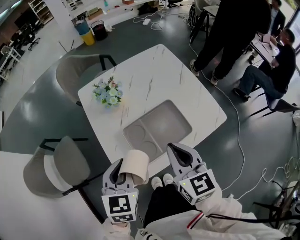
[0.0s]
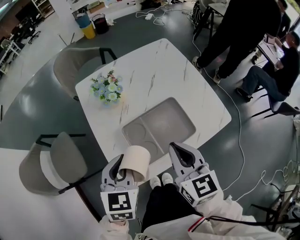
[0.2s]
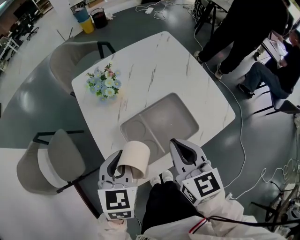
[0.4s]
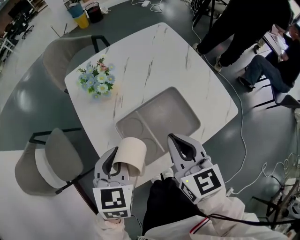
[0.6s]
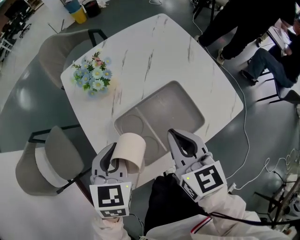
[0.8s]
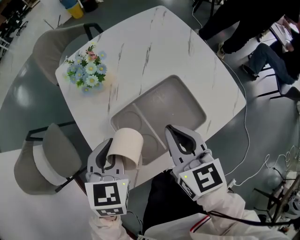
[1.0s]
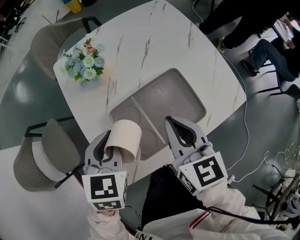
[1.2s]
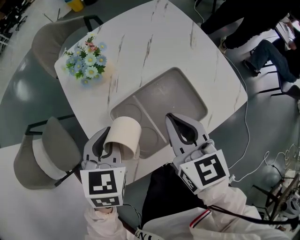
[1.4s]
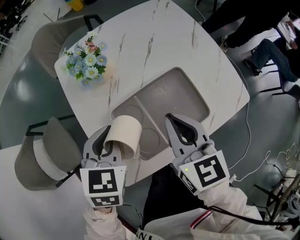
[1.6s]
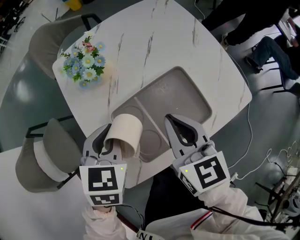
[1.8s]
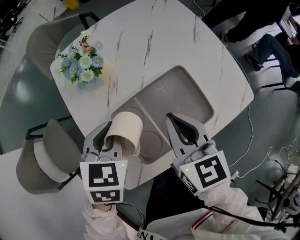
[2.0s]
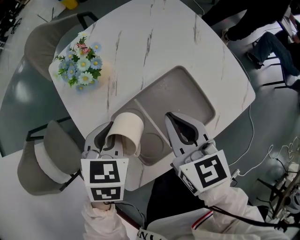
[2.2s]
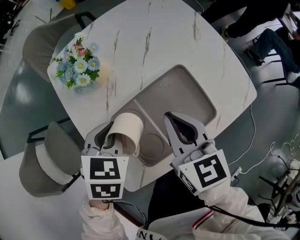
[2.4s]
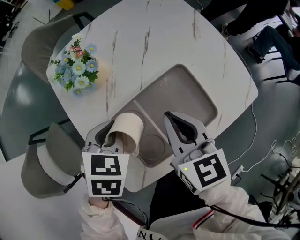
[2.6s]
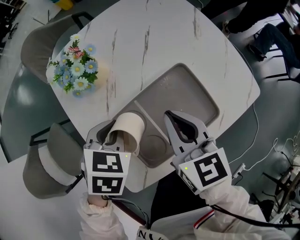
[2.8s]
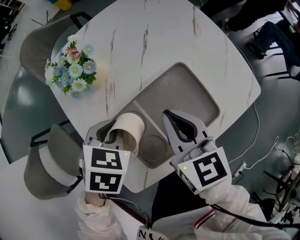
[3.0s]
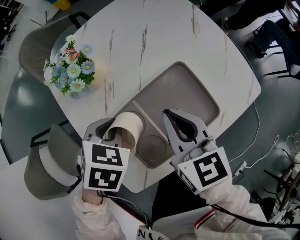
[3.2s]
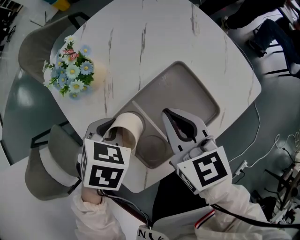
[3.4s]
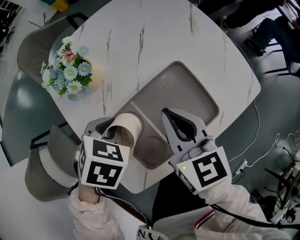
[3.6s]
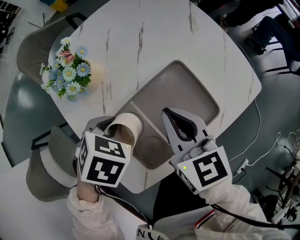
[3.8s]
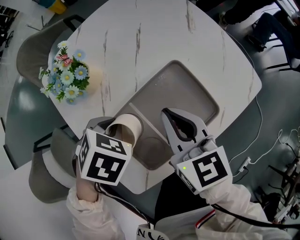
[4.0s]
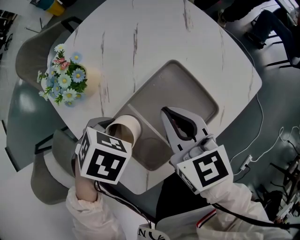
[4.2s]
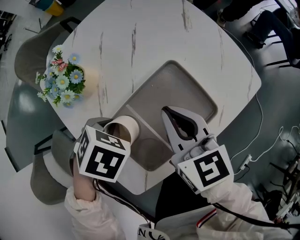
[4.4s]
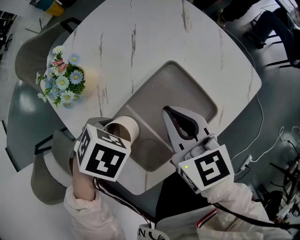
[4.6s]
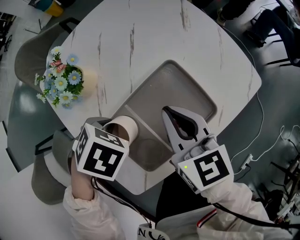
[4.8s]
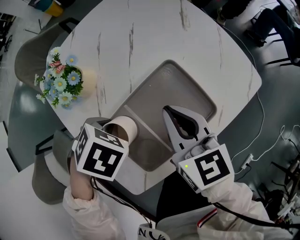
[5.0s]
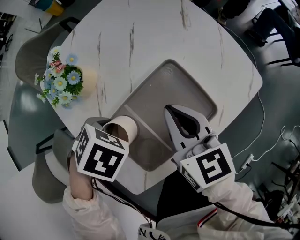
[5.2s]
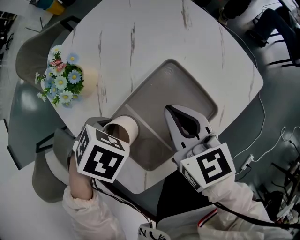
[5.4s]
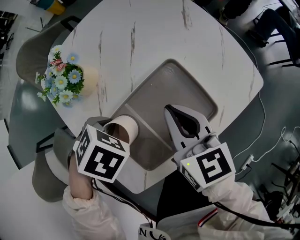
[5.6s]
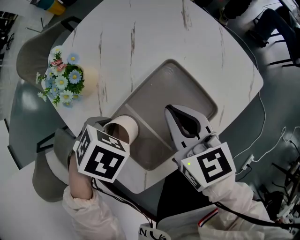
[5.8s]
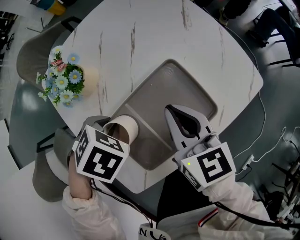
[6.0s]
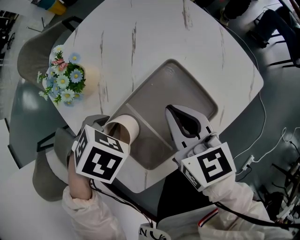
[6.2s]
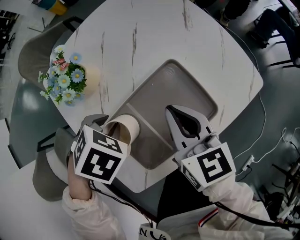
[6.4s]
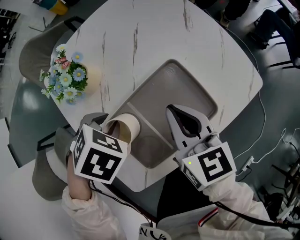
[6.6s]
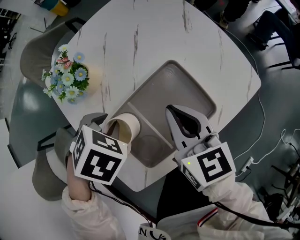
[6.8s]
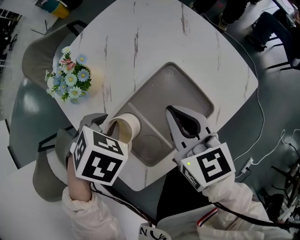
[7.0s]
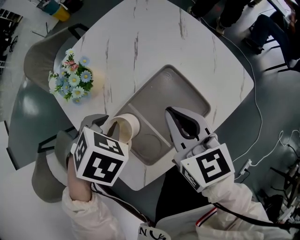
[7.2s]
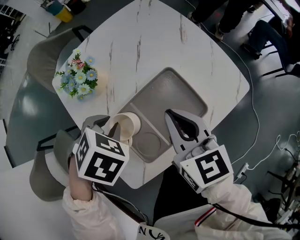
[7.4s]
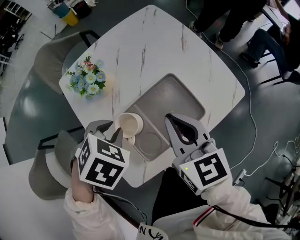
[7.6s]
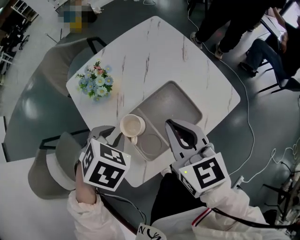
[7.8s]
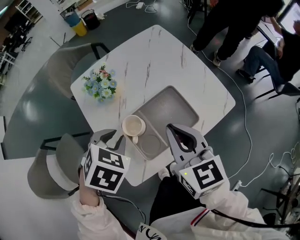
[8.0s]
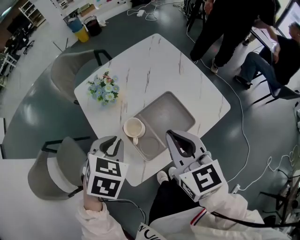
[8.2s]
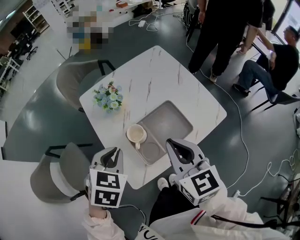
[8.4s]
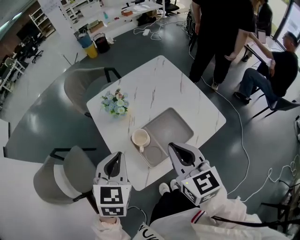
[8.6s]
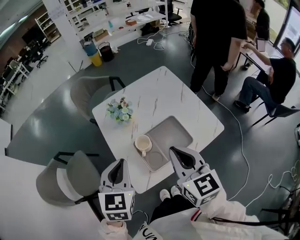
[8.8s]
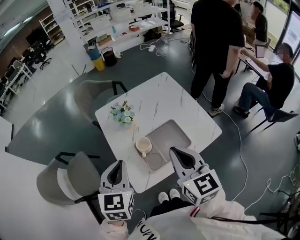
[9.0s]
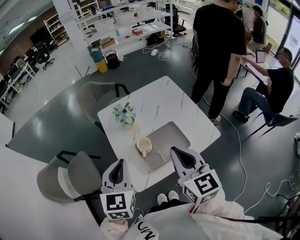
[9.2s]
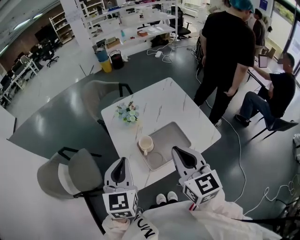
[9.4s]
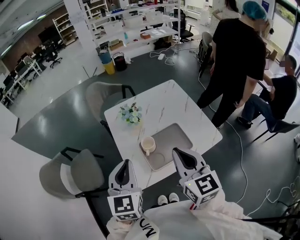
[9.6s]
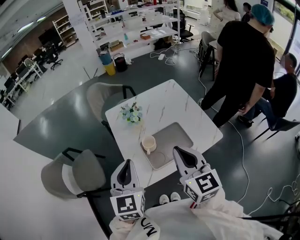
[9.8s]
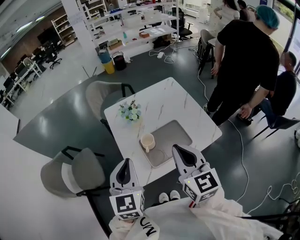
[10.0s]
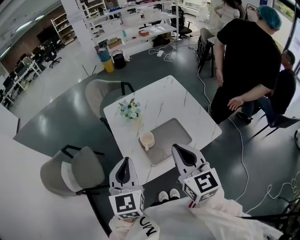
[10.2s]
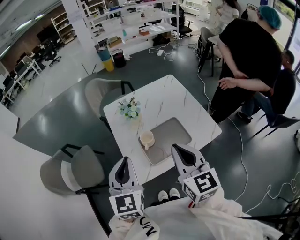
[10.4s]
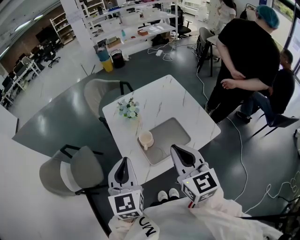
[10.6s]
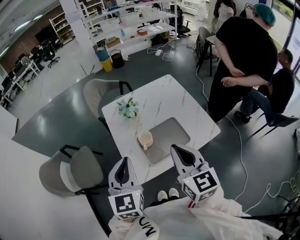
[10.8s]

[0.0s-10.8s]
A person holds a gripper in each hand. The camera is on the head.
0.0s to 1.6s: The two grippers go approximately 15 cm downward and forward.
1.6s to 3.0s: The right gripper ends up roughly 5 cm from where it was, while the left gripper is displaced downward by about 5 cm, and rotates some 20 degrees.
3.0s to 4.6s: The left gripper rotates some 20 degrees.
4.6s to 6.2s: Both grippers stay about where they are.
6.2s to 7.8s: The two grippers go about 10 cm upward.
7.8s to 9.2s: The grippers both shift upward and backward by approximately 20 cm. The left gripper angles its fingers upward, by about 50 degrees, and closes.
9.2s to 10.8s: The left gripper shifts by approximately 5 cm.

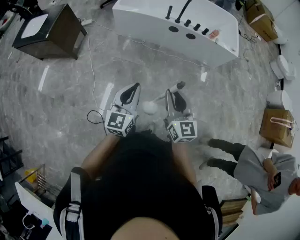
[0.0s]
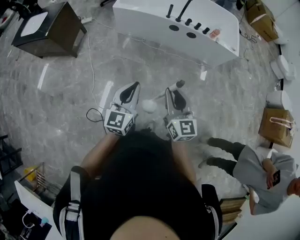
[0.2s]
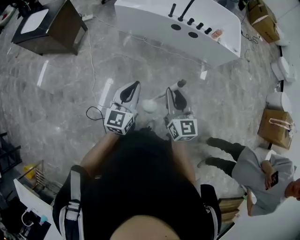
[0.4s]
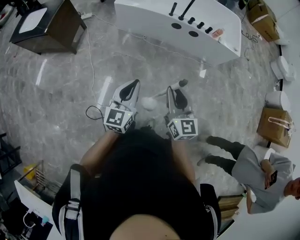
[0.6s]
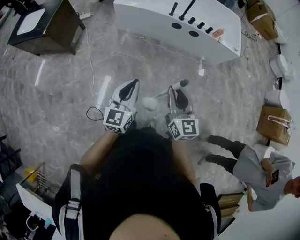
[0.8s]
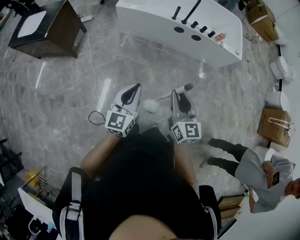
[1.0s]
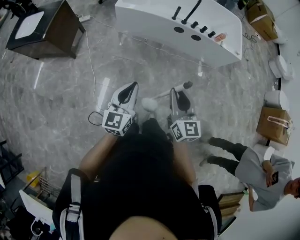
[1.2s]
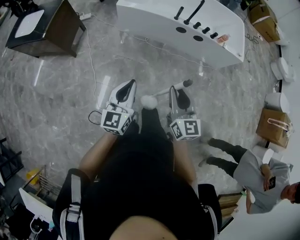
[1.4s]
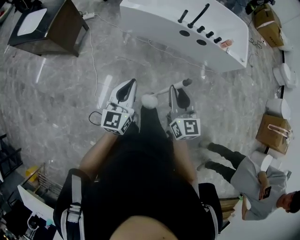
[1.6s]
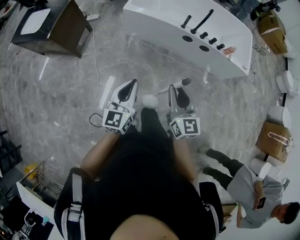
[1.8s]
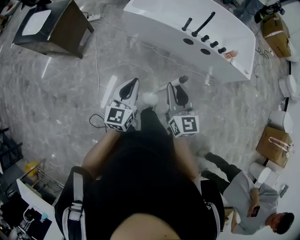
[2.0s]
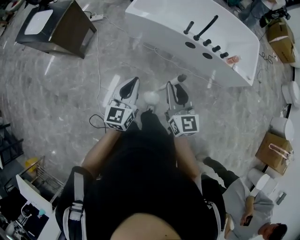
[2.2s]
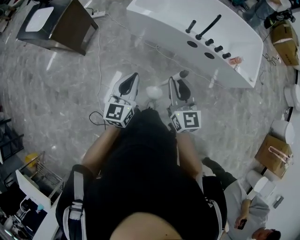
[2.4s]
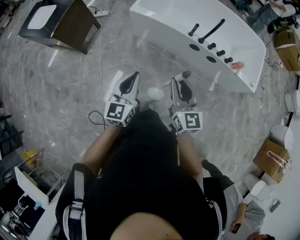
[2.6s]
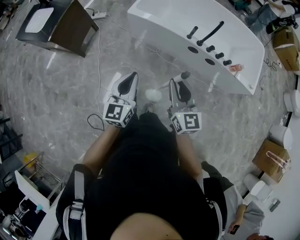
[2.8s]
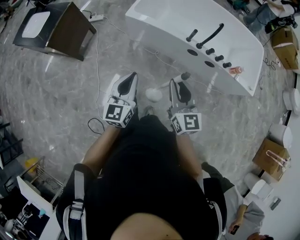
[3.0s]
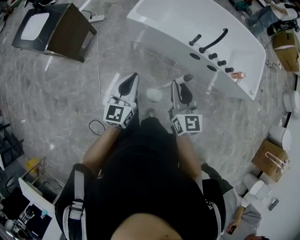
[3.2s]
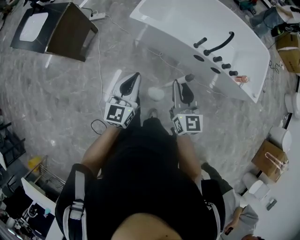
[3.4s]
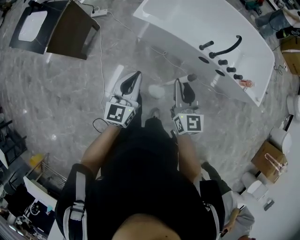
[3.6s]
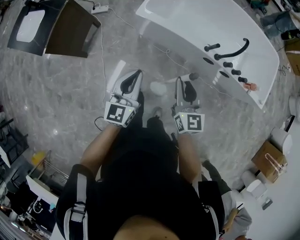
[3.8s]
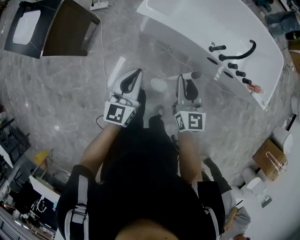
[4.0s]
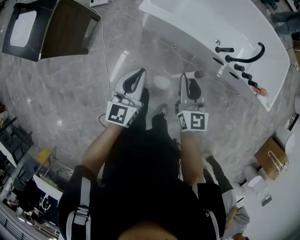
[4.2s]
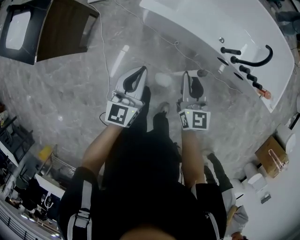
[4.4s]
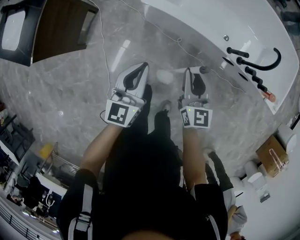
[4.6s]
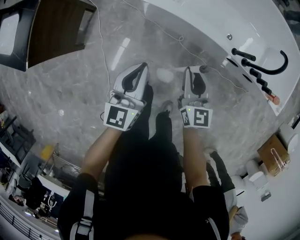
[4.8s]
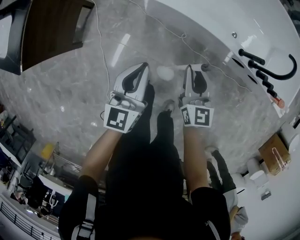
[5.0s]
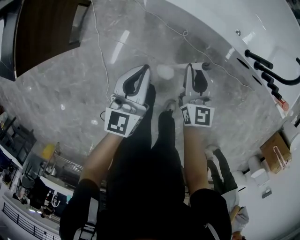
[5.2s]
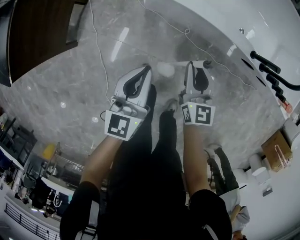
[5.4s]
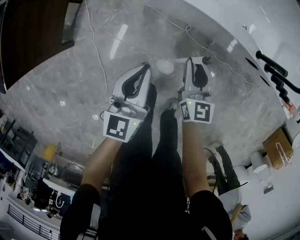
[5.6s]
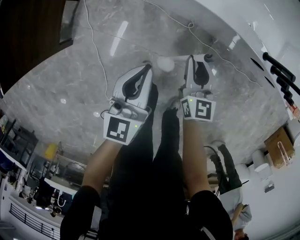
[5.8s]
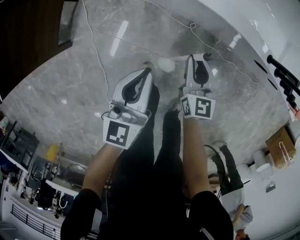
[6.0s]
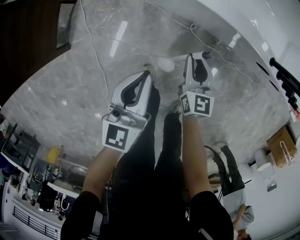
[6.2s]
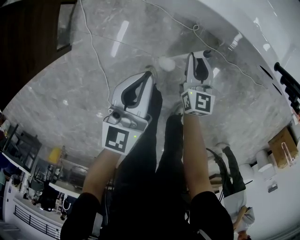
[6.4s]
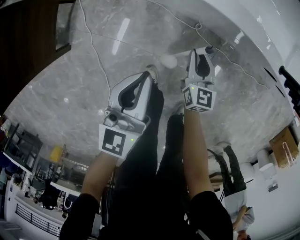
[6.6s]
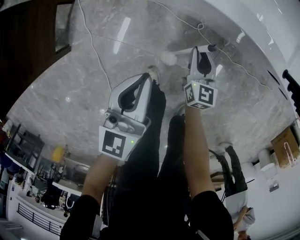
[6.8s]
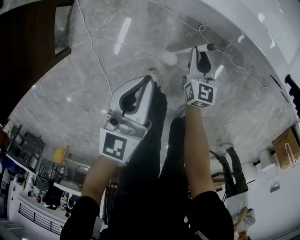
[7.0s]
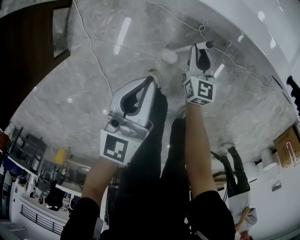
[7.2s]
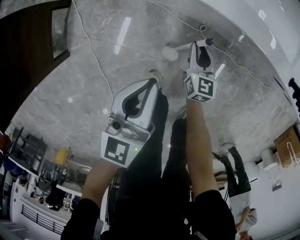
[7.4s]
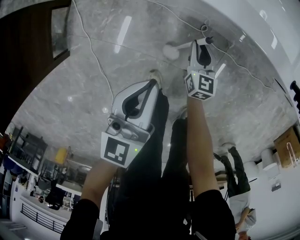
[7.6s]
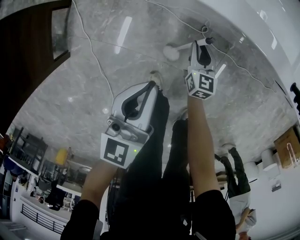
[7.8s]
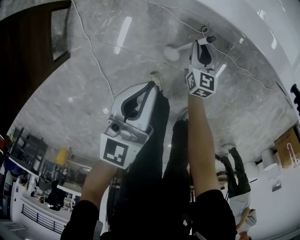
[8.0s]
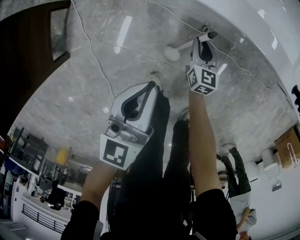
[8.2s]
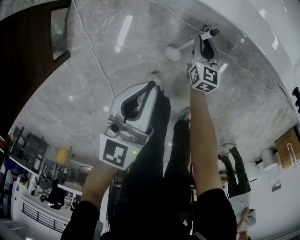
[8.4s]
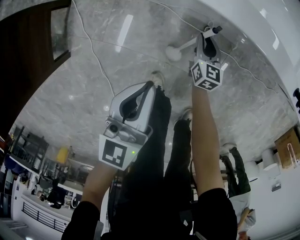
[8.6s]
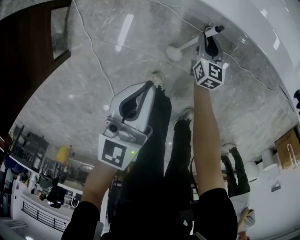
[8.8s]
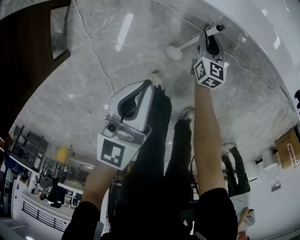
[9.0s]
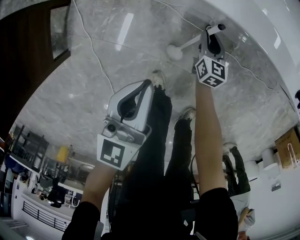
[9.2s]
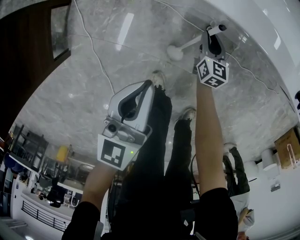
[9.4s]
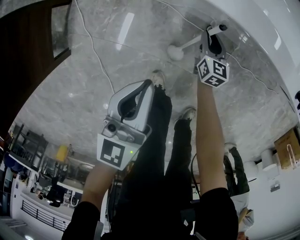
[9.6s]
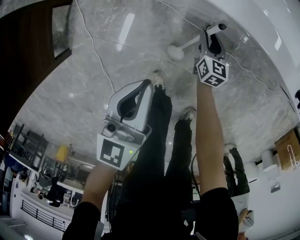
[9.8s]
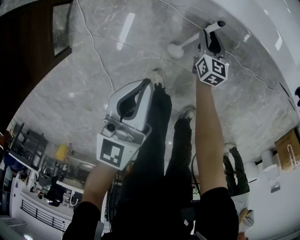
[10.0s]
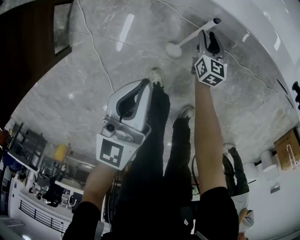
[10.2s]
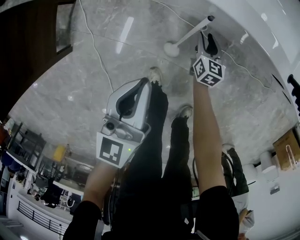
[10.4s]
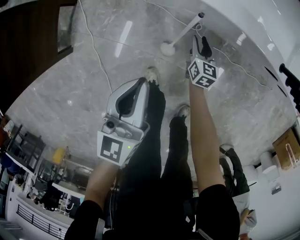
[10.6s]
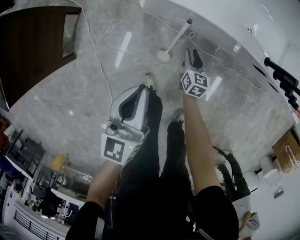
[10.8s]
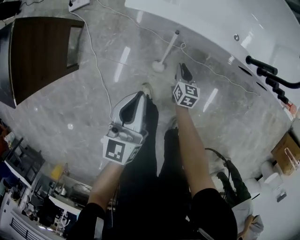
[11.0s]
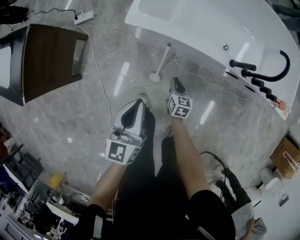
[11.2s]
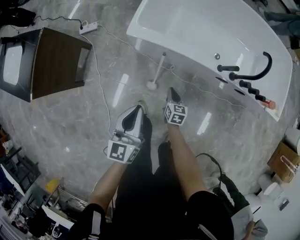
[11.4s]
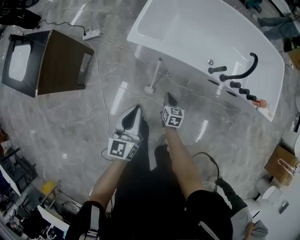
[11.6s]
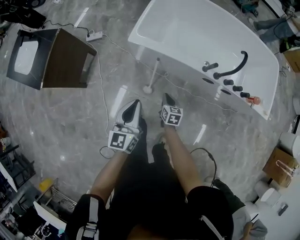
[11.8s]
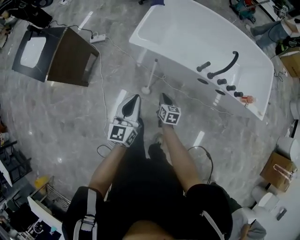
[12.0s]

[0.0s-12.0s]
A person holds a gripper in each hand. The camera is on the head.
0.0s to 1.6s: The two grippers go about 20 cm forward and to the left.
1.6s to 3.0s: The two grippers go approximately 25 cm forward.
3.0s to 4.4s: The left gripper goes about 35 cm forward, downward and to the left. Meanwhile the right gripper is displaced forward and downward by about 35 cm.
4.4s to 6.0s: The grippers both shift downward by about 30 cm.
6.0s to 7.6s: The left gripper is displaced downward and forward by roughly 10 cm. Meanwhile the right gripper shifts approximately 20 cm downward.
7.6s to 9.0s: The right gripper shifts some 5 cm downward.
9.0s to 10.4s: The right gripper shifts by roughly 5 cm. The left gripper shifts roughly 5 cm upward.
10.4s to 12.0s: The left gripper is displaced upward, backward and to the right by roughly 40 cm; the right gripper goes approximately 50 cm upward and backward, and closes.

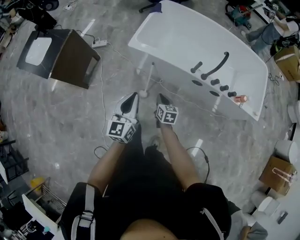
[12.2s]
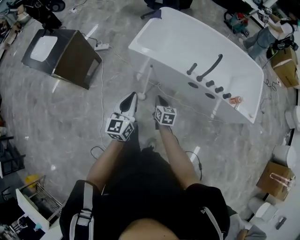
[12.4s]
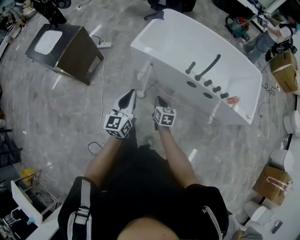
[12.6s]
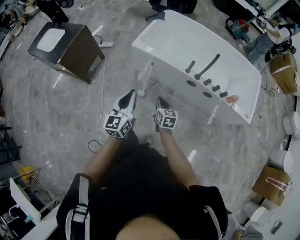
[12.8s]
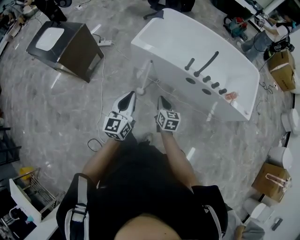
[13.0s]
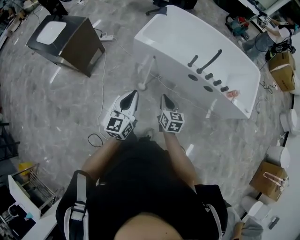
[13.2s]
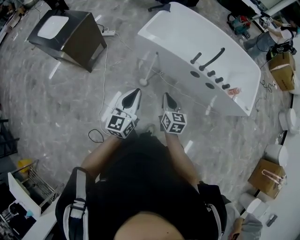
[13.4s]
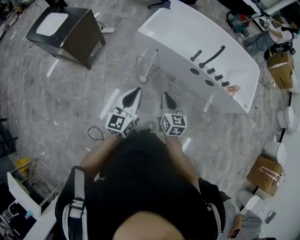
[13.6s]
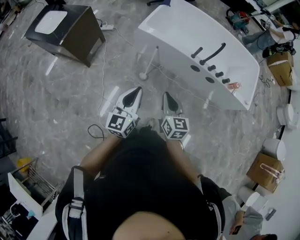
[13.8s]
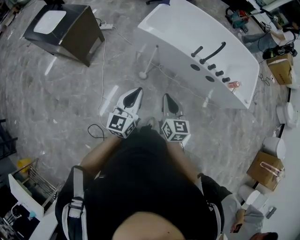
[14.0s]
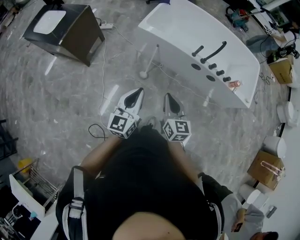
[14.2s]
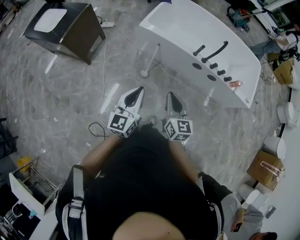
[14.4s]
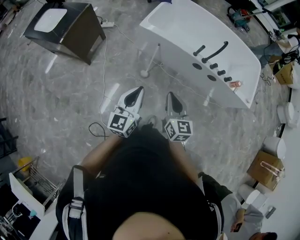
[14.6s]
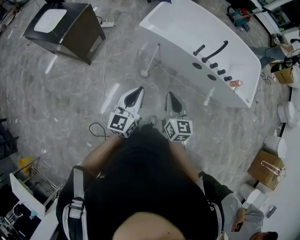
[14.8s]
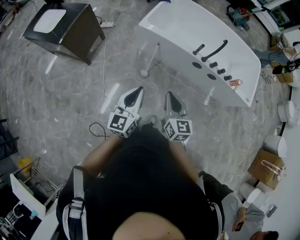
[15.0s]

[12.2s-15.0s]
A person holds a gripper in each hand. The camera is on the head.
12.2s to 13.6s: The right gripper travels upward and backward by roughly 30 cm, while the left gripper shifts approximately 20 cm backward and upward.
13.6s to 15.0s: The grippers move only a little.
